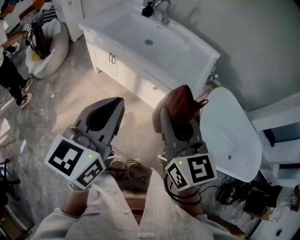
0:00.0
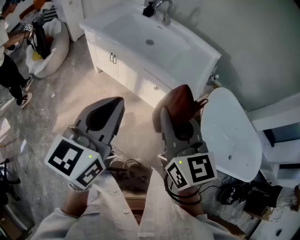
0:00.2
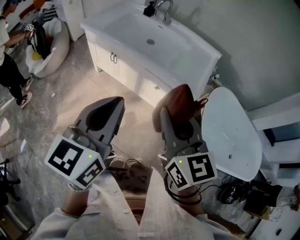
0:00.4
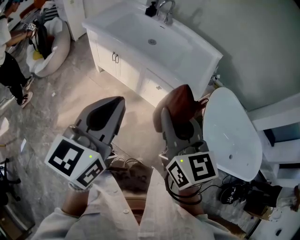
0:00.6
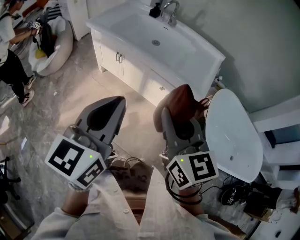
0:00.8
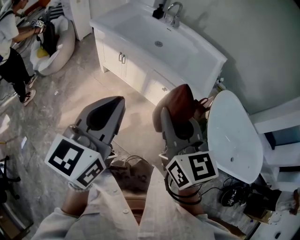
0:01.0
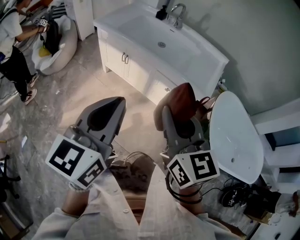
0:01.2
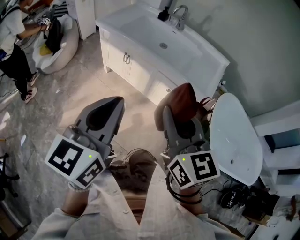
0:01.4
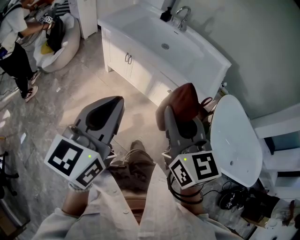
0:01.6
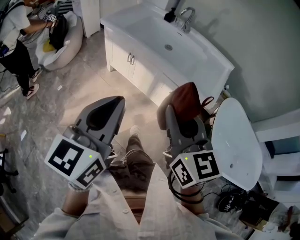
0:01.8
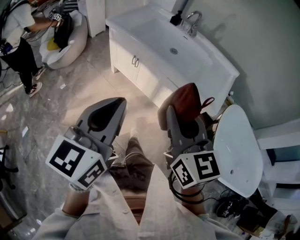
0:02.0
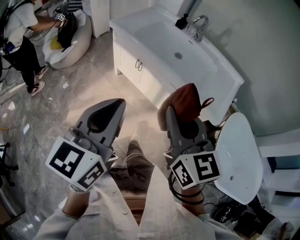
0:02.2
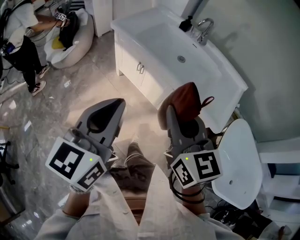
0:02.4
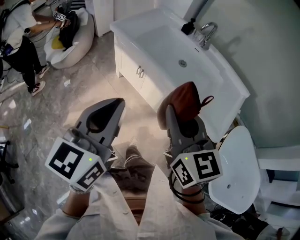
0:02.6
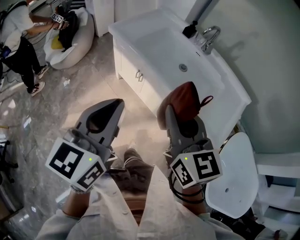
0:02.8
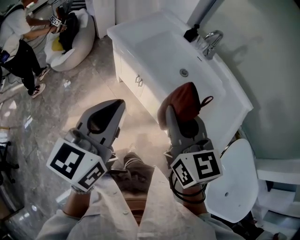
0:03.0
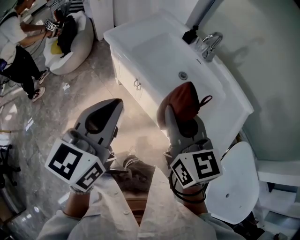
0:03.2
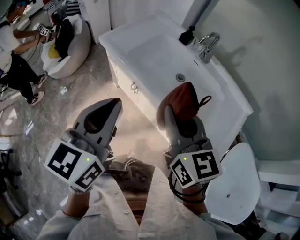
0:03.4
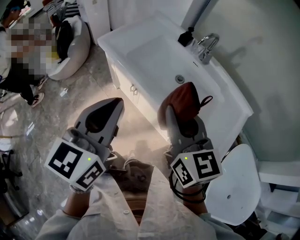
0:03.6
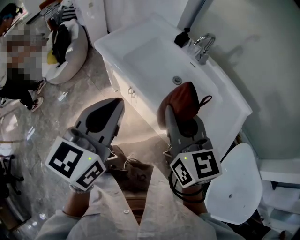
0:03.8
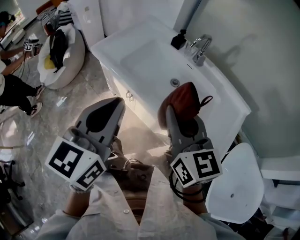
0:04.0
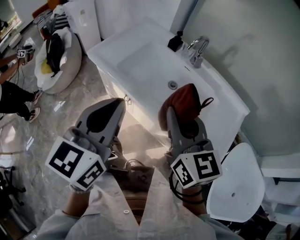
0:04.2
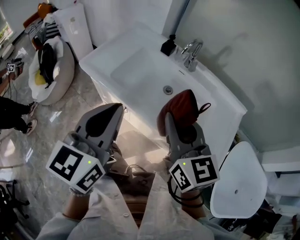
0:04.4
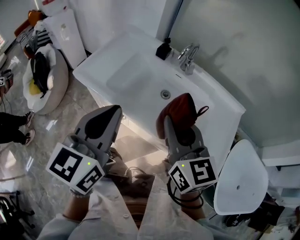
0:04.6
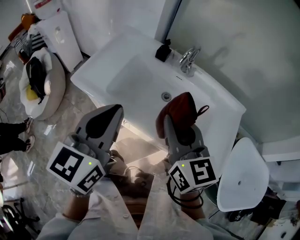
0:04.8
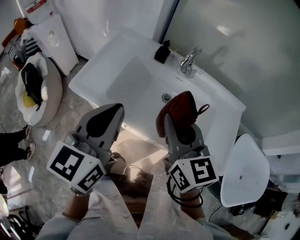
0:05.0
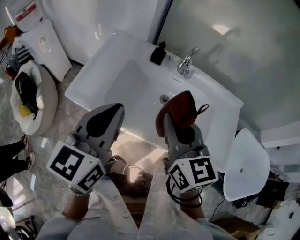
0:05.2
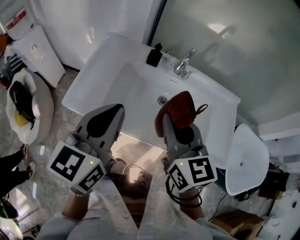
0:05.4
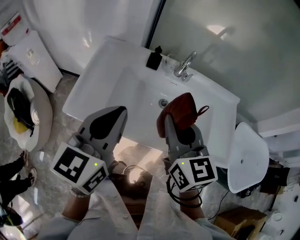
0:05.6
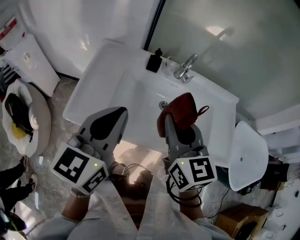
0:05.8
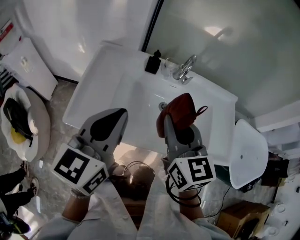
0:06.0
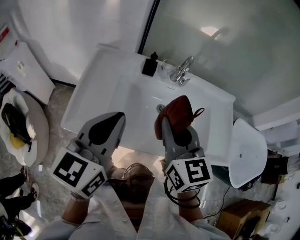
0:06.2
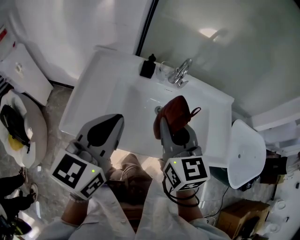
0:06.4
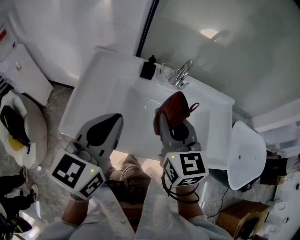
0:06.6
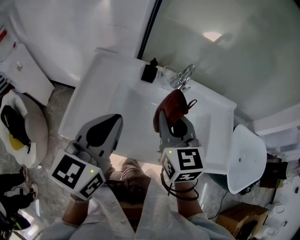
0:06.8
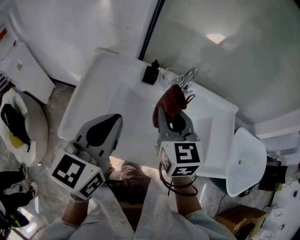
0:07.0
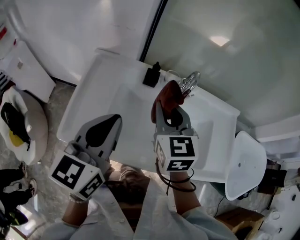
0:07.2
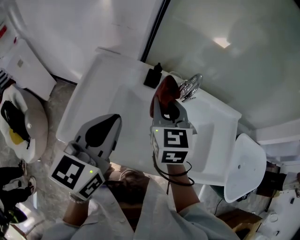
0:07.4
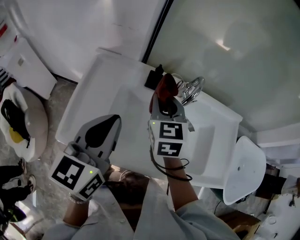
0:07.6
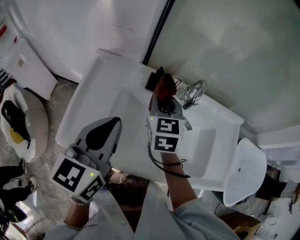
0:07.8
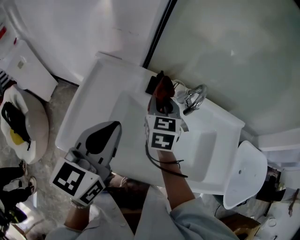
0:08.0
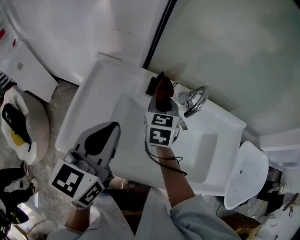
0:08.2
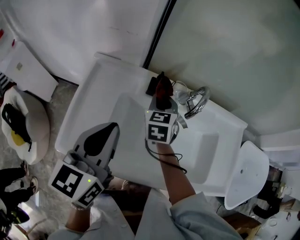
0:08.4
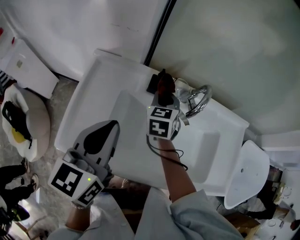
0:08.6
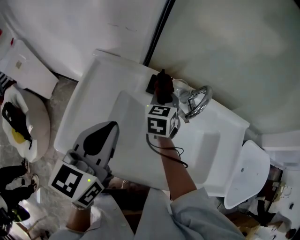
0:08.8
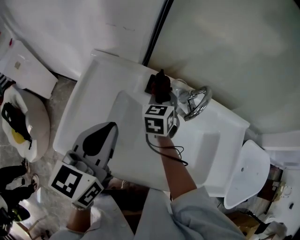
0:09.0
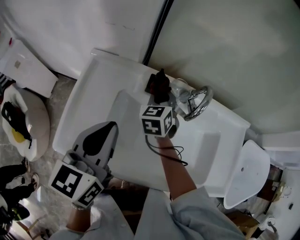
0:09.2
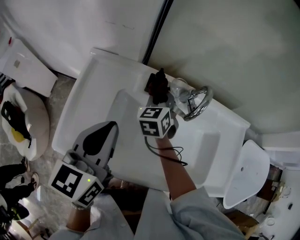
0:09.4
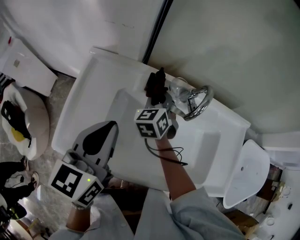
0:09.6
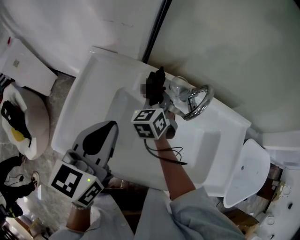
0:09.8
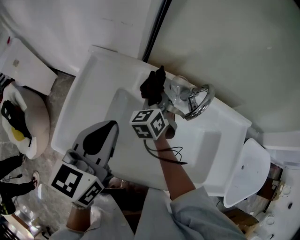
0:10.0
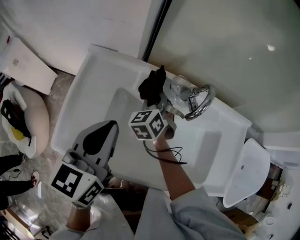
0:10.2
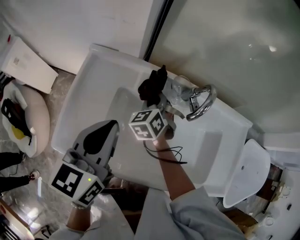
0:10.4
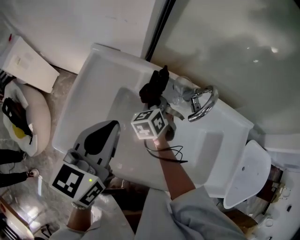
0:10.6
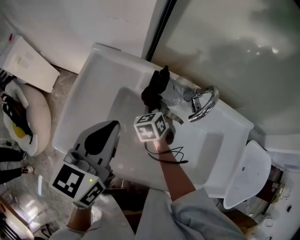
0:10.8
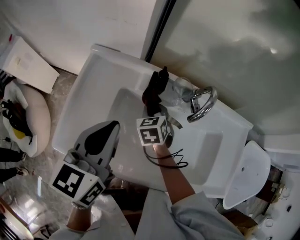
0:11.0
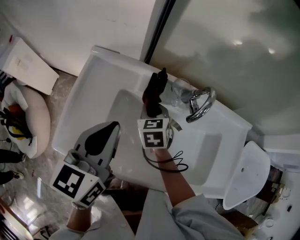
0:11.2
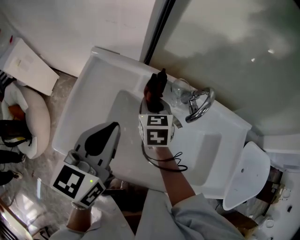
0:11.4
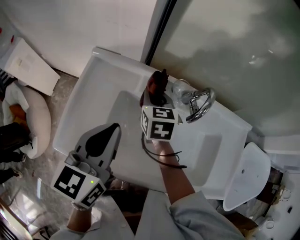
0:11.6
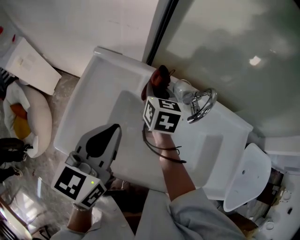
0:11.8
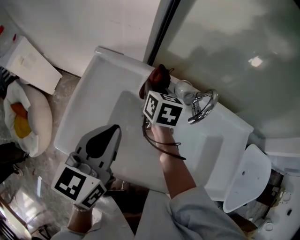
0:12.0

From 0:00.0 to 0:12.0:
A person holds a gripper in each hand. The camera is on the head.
From 0:00.0 to 0:01.6: The two grippers go roughly 10 cm to the left.
From 0:01.6 to 0:03.0: Both grippers travel together forward, roughly 30 cm.
From 0:03.0 to 0:04.4: The right gripper shifts approximately 15 cm forward and to the right, while the left gripper goes approximately 15 cm forward.
From 0:04.4 to 0:06.0: The right gripper changes place by some 20 cm, and turns by roughly 30 degrees; the left gripper moves roughly 25 cm, and turns by roughly 30 degrees.
From 0:06.0 to 0:07.6: The left gripper goes approximately 10 cm forward. Meanwhile the right gripper is displaced forward by roughly 20 cm.
From 0:07.6 to 0:09.0: The right gripper shifts about 15 cm downward and forward. Meanwhile the left gripper travels forward by some 5 cm.
From 0:09.0 to 0:10.4: The right gripper heads downward, covering roughly 5 cm.
From 0:10.4 to 0:12.0: The right gripper goes roughly 5 cm upward, and rotates around the line of its fingers by roughly 50 degrees, clockwise from behind.

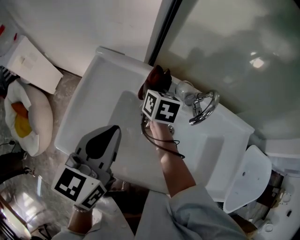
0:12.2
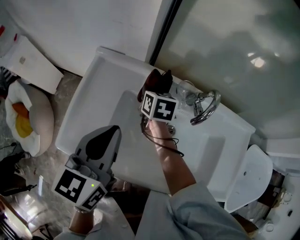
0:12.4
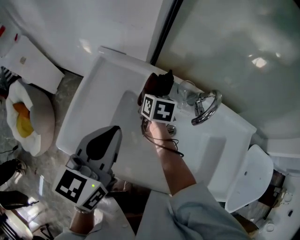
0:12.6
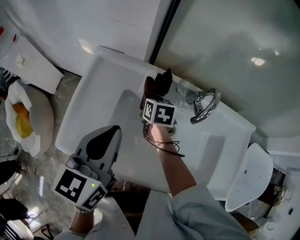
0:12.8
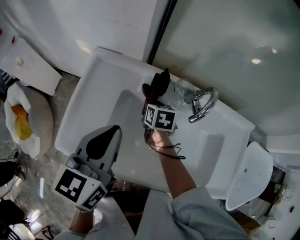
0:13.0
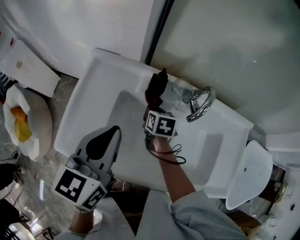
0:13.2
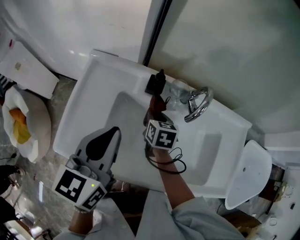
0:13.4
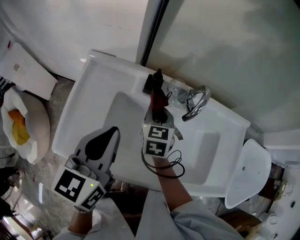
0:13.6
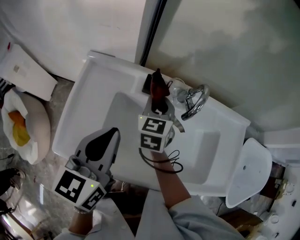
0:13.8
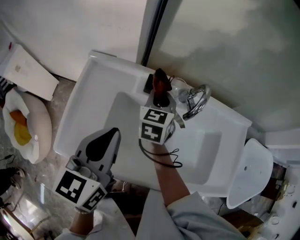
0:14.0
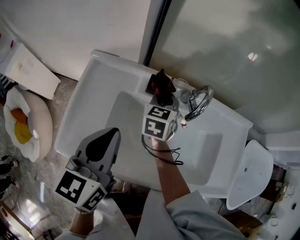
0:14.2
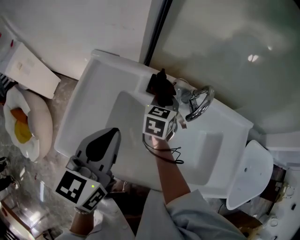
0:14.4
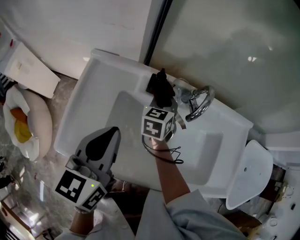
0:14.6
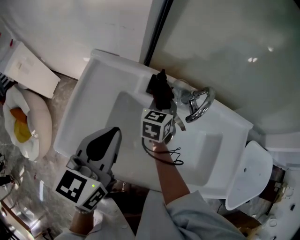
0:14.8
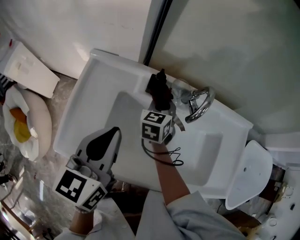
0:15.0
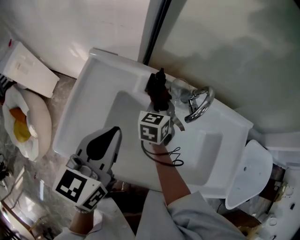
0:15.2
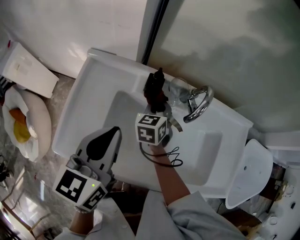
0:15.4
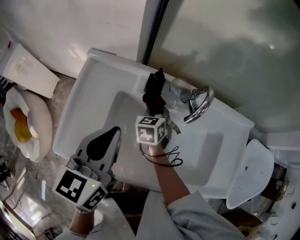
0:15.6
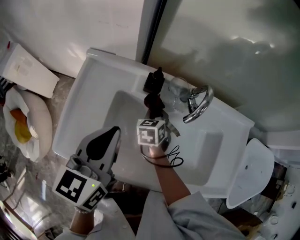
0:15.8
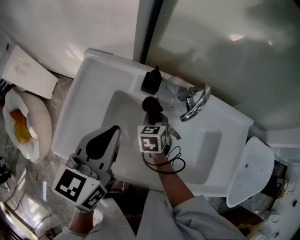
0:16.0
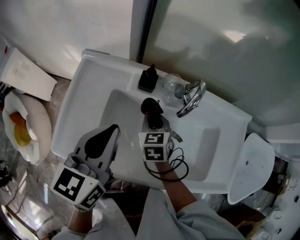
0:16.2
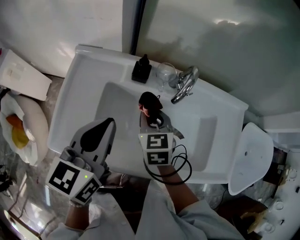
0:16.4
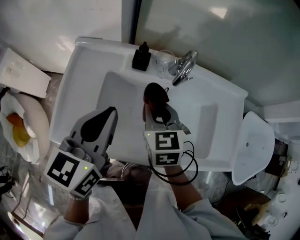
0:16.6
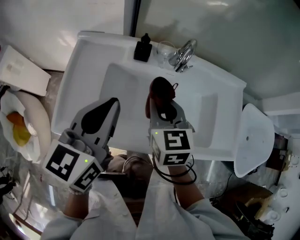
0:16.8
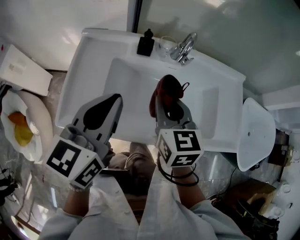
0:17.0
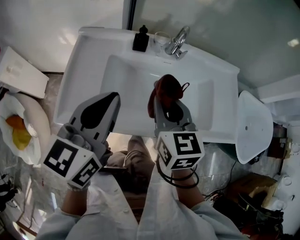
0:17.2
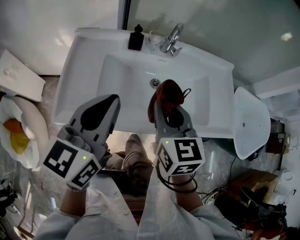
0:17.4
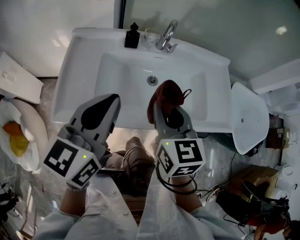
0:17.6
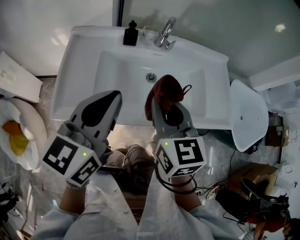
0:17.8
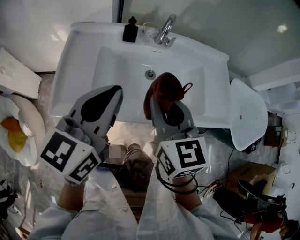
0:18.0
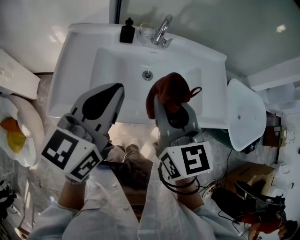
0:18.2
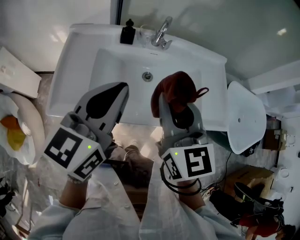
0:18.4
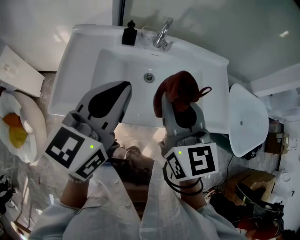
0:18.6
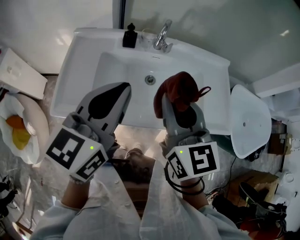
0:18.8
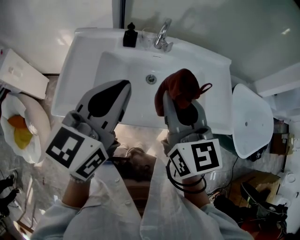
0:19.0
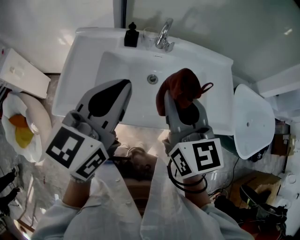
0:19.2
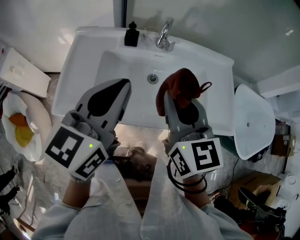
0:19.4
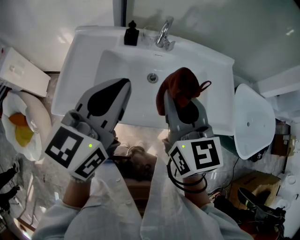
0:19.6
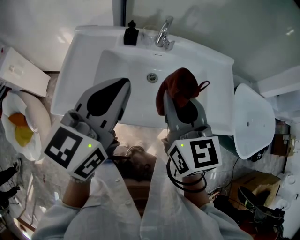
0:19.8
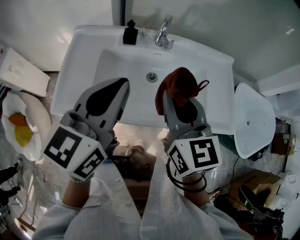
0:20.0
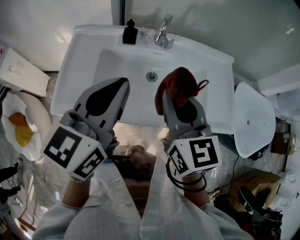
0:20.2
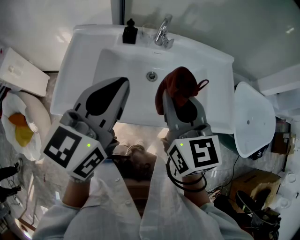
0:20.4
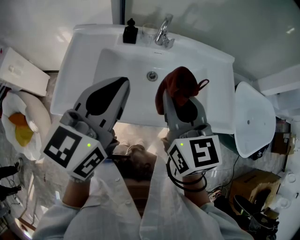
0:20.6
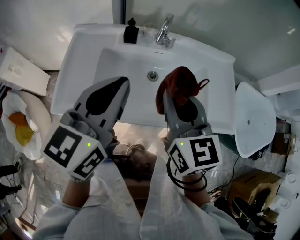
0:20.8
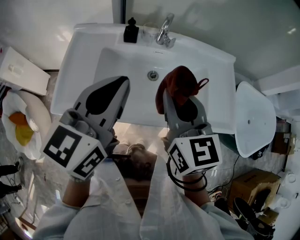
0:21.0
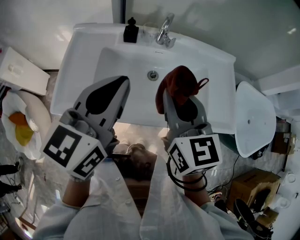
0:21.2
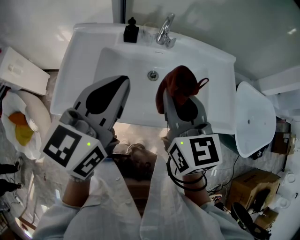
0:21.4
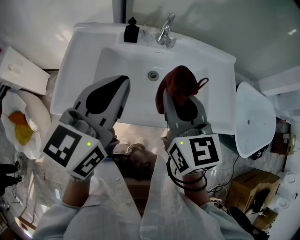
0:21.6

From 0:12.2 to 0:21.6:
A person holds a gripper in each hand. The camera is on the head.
From 0:12.2 to 0:13.8: The right gripper goes some 5 cm to the right, travels downward and back again, roughly 10 cm each way, and rotates approximately 30 degrees.
From 0:13.8 to 0:15.4: The right gripper travels downward by approximately 10 cm.
From 0:15.4 to 0:17.0: The right gripper is displaced backward and upward by roughly 25 cm, and swivels approximately 30 degrees. The left gripper moves backward, some 10 cm.
From 0:17.0 to 0:18.4: The right gripper is displaced upward, backward and to the right by approximately 15 cm. The left gripper travels to the right and backward by roughly 10 cm.
From 0:18.4 to 0:20.0: The grippers stay close to where they were, moving slightly.
From 0:20.0 to 0:21.6: Both grippers stay about where they are.

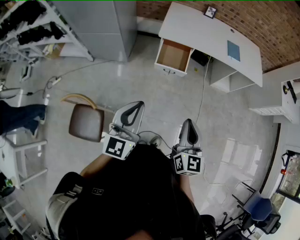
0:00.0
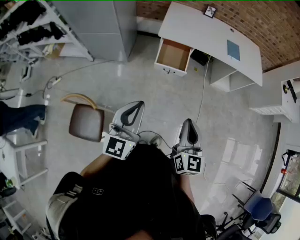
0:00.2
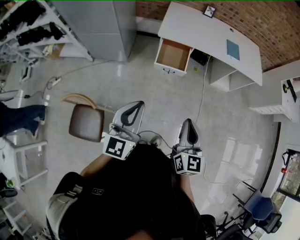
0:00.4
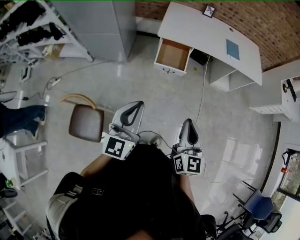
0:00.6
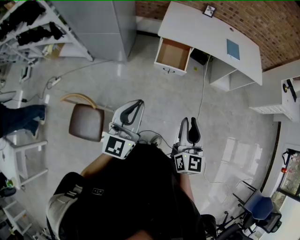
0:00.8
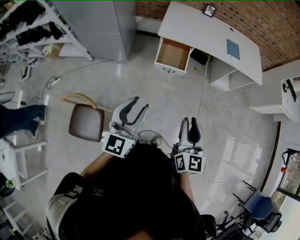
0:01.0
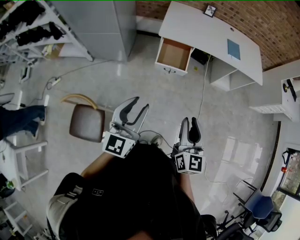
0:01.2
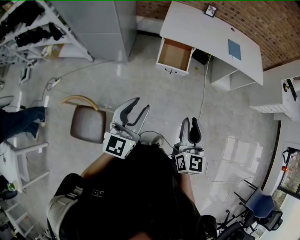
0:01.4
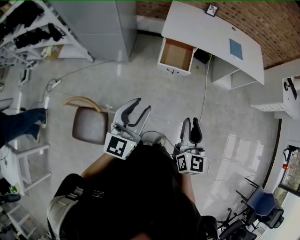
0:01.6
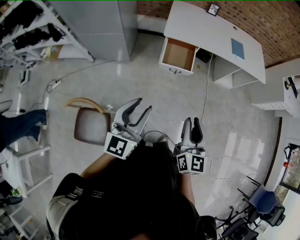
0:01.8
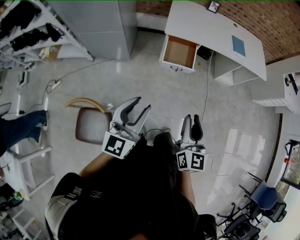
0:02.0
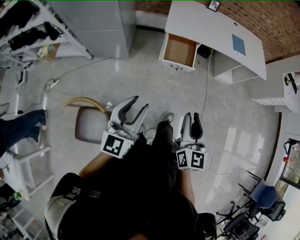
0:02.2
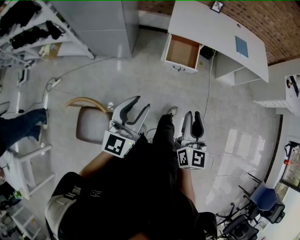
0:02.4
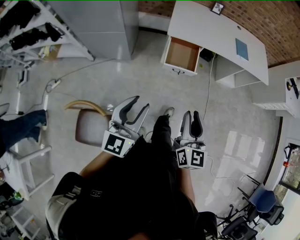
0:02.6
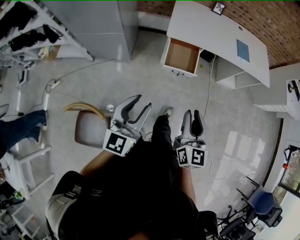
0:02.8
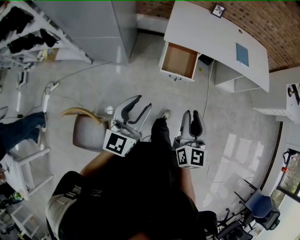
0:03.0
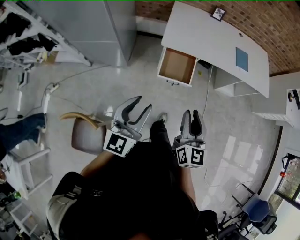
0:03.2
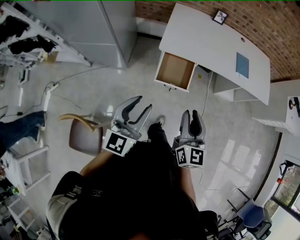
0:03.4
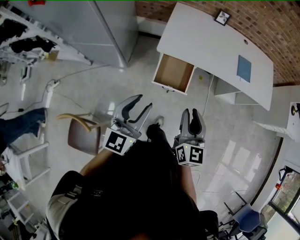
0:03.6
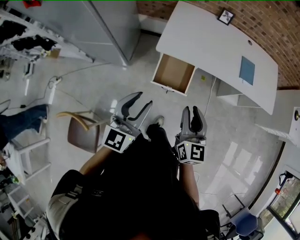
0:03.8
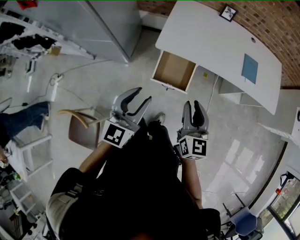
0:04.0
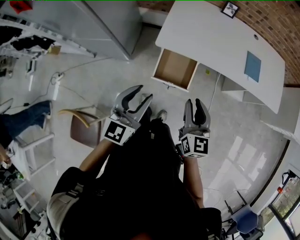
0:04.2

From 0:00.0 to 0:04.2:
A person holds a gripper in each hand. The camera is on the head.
From 0:00.0 to 0:01.4: The left gripper opens its fingers. The right gripper opens its fingers.
From 0:01.4 to 0:02.8: The two grippers go approximately 10 cm forward and to the left.
From 0:02.8 to 0:04.2: The left gripper travels forward and to the right by about 25 cm. The right gripper heads forward, covering approximately 25 cm.
